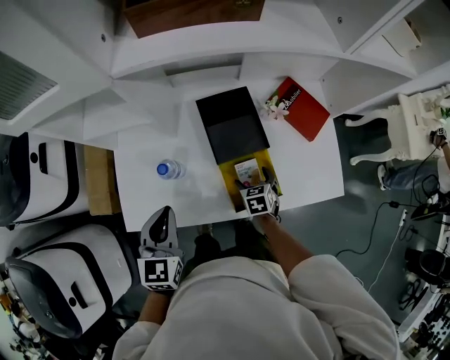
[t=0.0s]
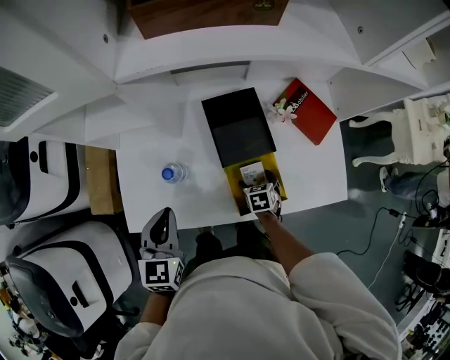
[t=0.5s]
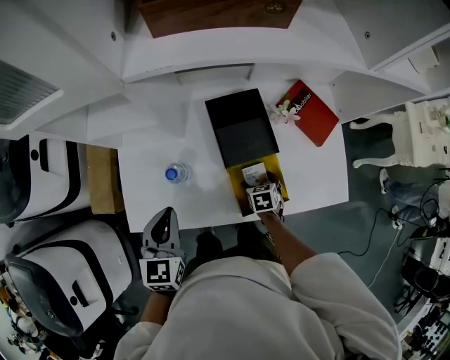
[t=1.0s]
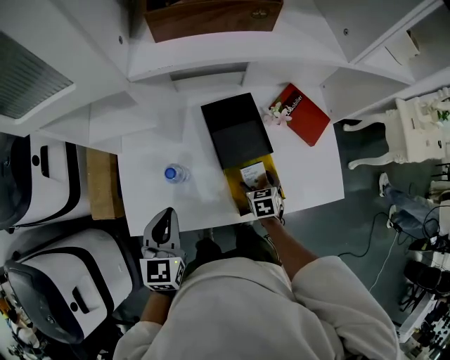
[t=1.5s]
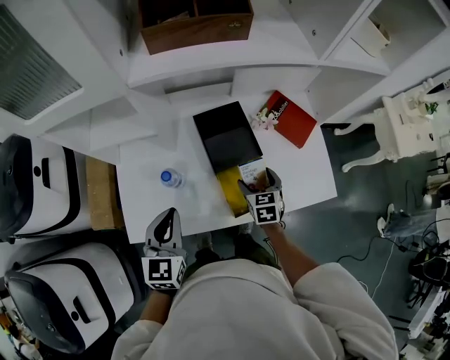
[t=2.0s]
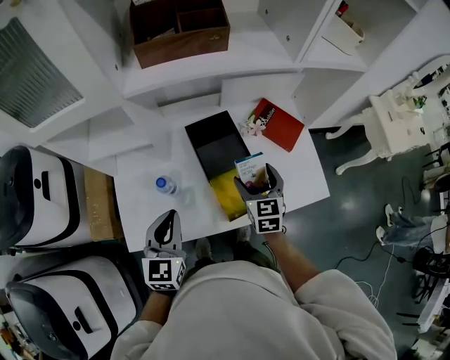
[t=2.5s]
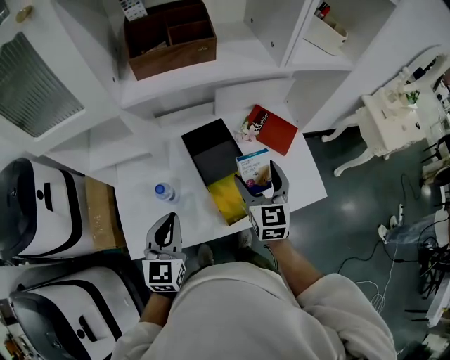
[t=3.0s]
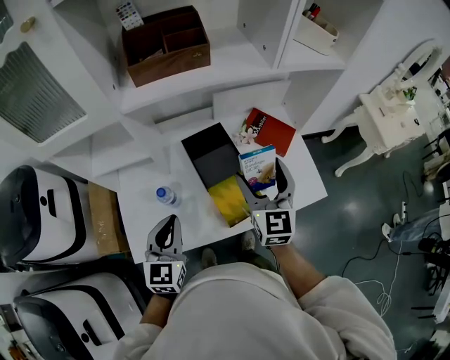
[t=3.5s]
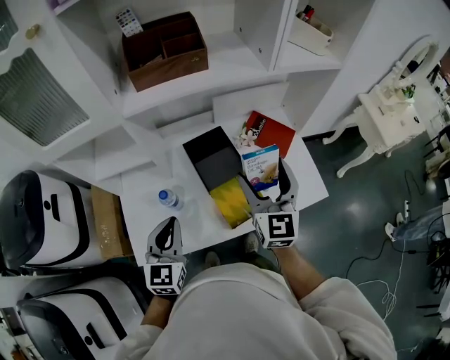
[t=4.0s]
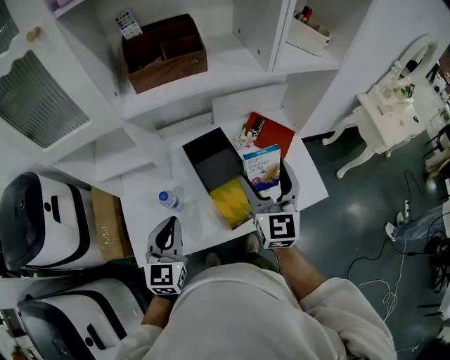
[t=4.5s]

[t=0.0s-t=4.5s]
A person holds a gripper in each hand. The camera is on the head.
t=0.0s to t=2.0s: The right gripper travels upward by about 10 cm.
t=2.0s to t=4.5s: The left gripper moves upward, some 5 cm. The right gripper moves upward, approximately 30 cm, and points its fingers some 40 degrees further upward.

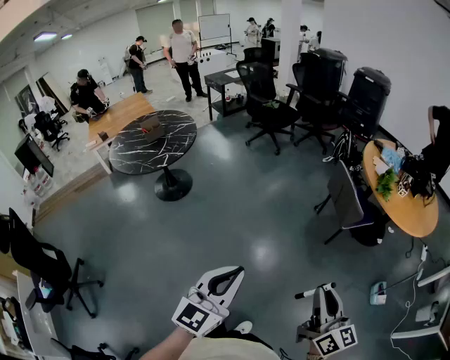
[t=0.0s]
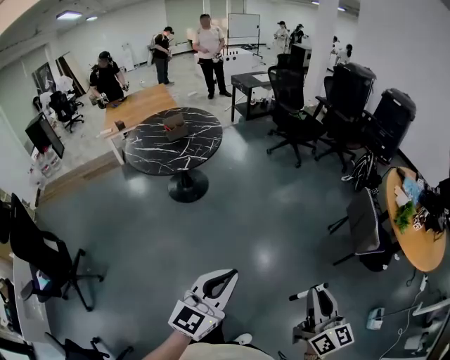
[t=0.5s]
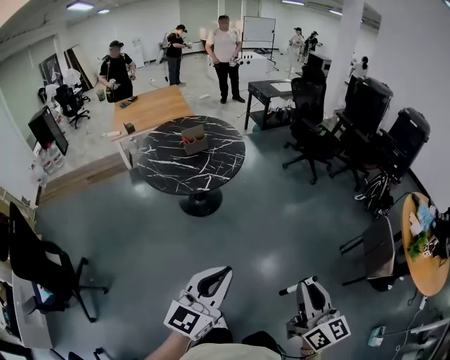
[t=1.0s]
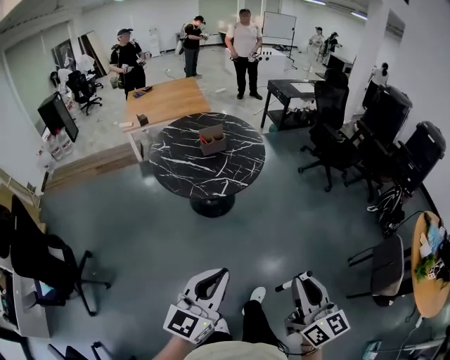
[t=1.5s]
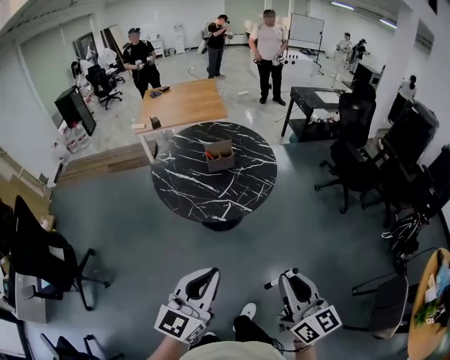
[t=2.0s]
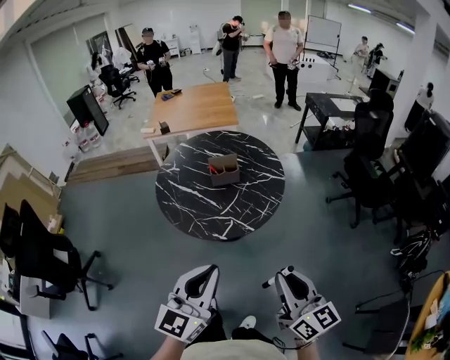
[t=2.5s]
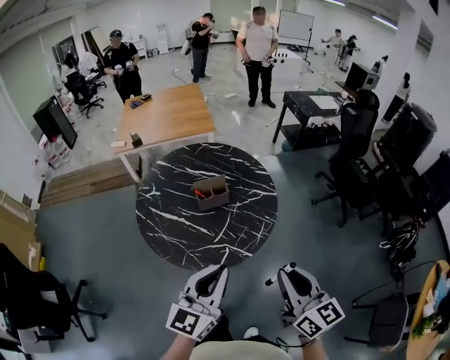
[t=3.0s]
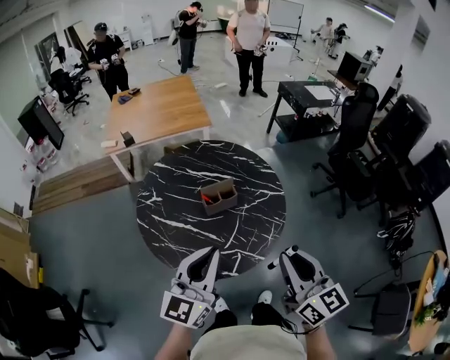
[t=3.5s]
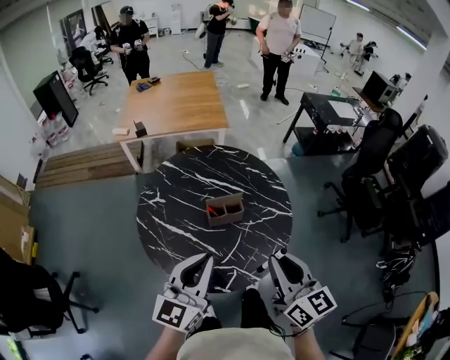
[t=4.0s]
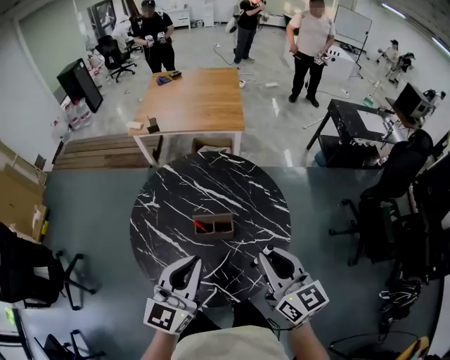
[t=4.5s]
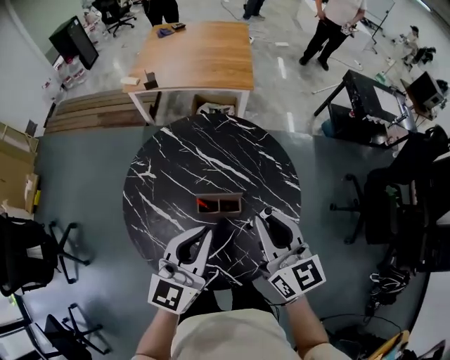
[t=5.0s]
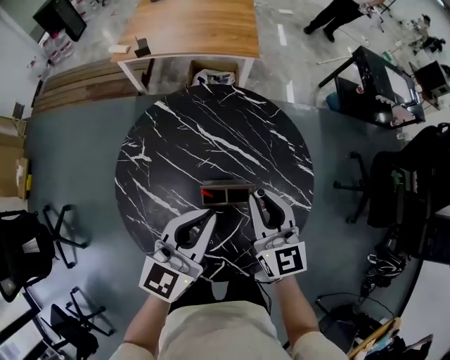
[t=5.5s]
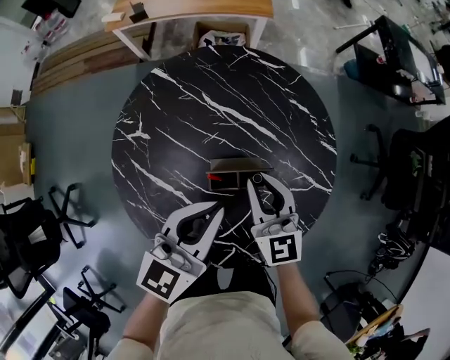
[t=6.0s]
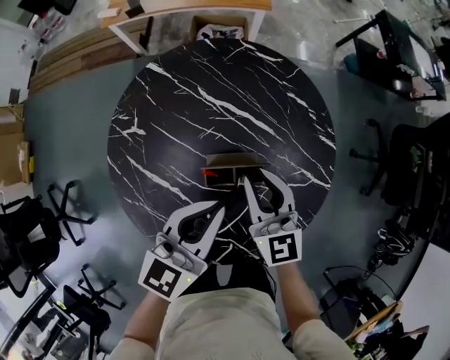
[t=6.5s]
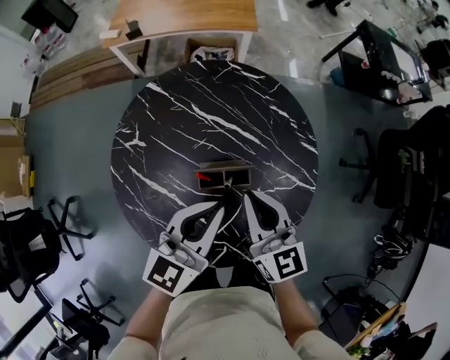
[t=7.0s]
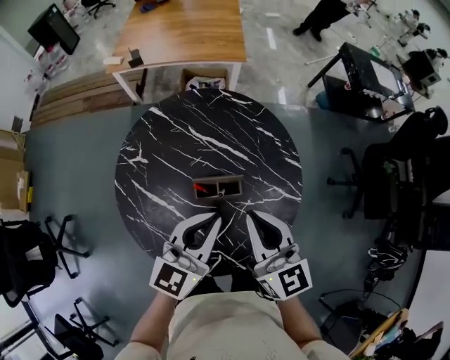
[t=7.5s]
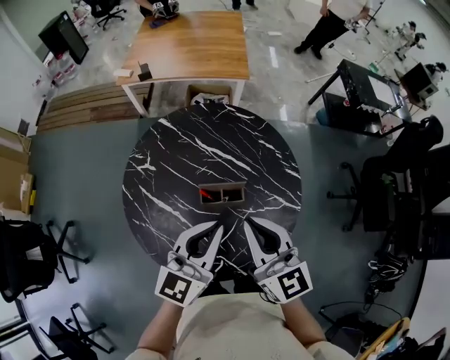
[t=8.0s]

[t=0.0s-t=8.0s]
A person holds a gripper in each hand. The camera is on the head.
t=0.0s to t=2.0s: Both grippers are carried approximately 70 cm. The left gripper swivels some 30 degrees; the right gripper turns by about 40 degrees.
t=2.0s to t=4.0s: Both grippers are carried forward, approximately 50 cm.
t=4.0s to t=6.0s: Both grippers move forward and downward, roughly 35 cm.
t=6.0s to t=8.0s: The right gripper heads upward and backward, covering roughly 20 cm, while the left gripper travels upward and backward by about 15 cm.

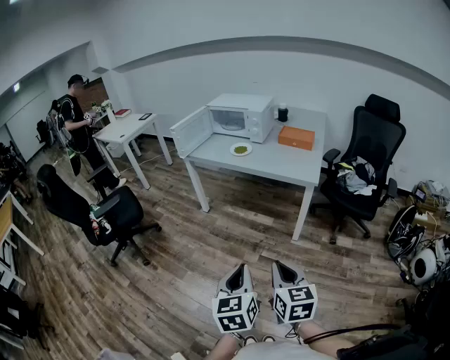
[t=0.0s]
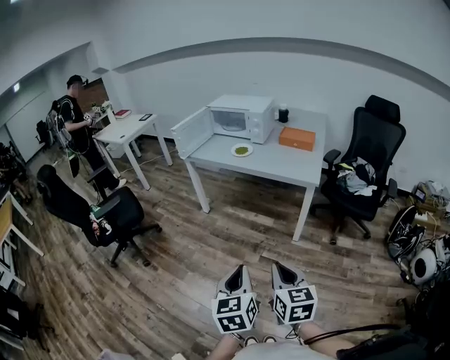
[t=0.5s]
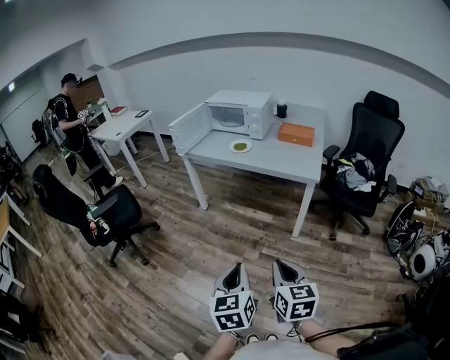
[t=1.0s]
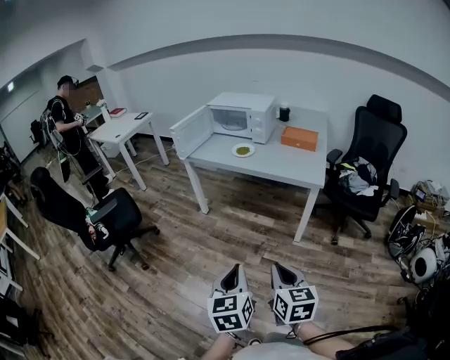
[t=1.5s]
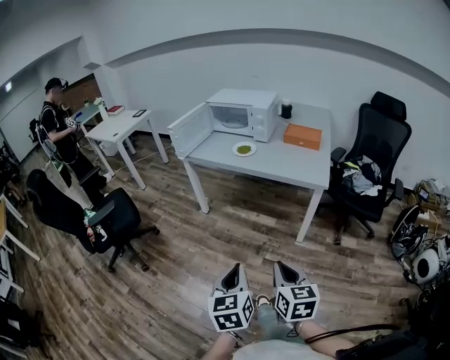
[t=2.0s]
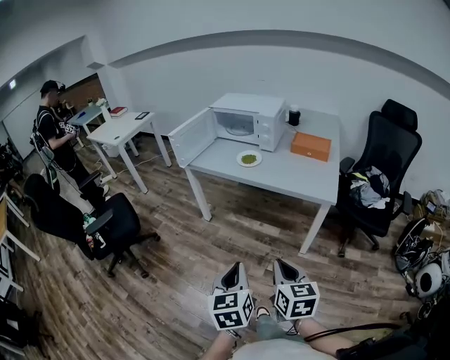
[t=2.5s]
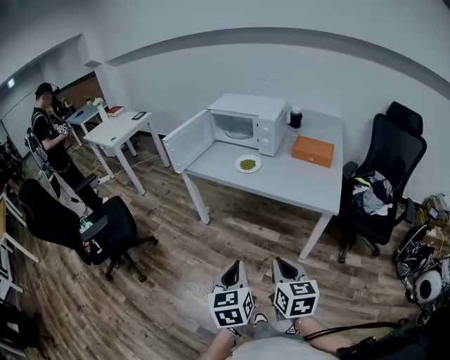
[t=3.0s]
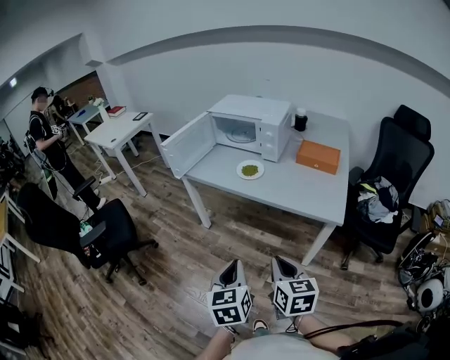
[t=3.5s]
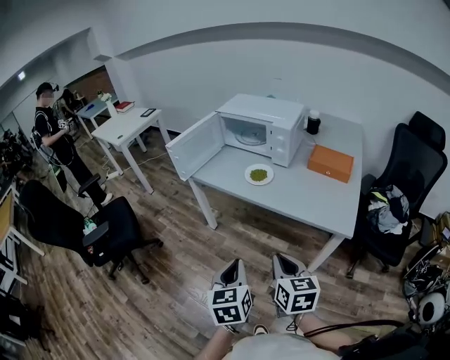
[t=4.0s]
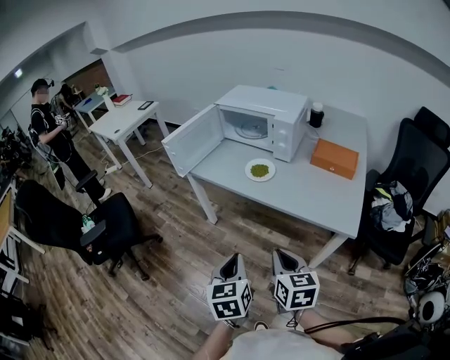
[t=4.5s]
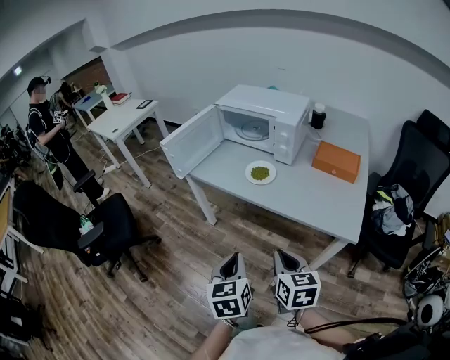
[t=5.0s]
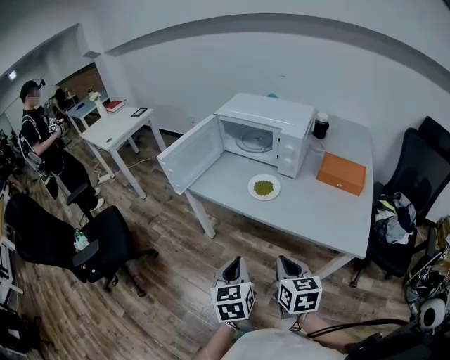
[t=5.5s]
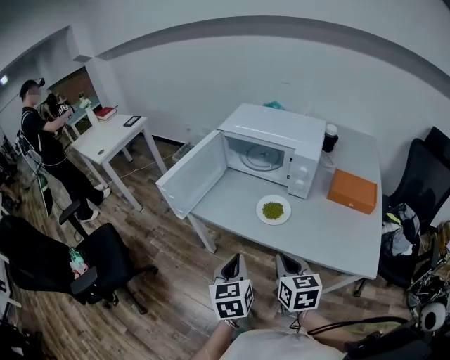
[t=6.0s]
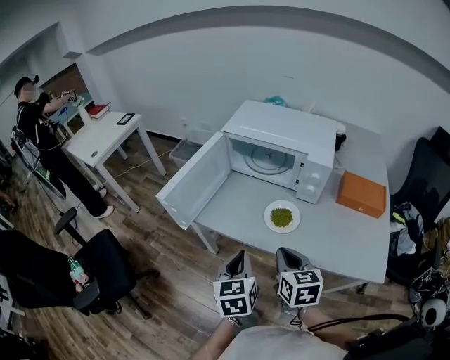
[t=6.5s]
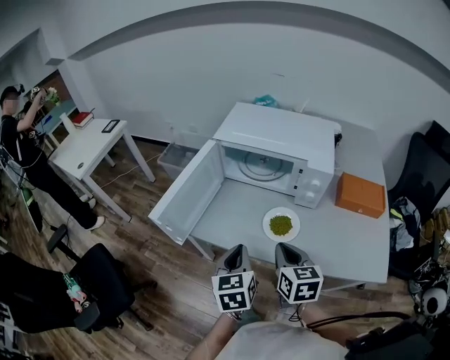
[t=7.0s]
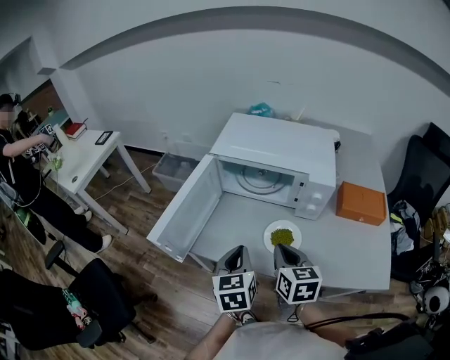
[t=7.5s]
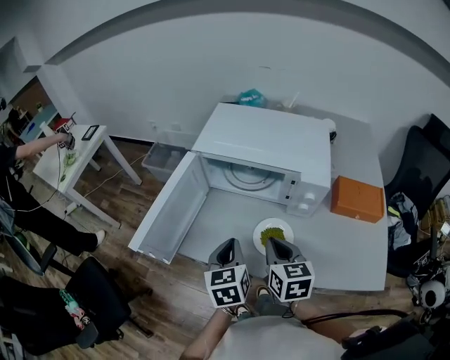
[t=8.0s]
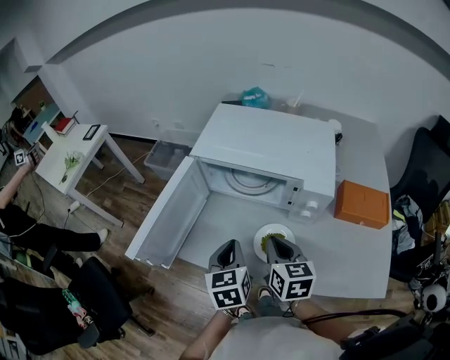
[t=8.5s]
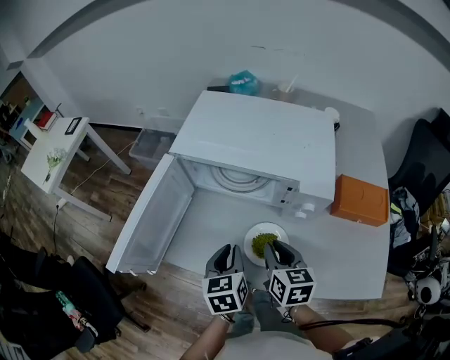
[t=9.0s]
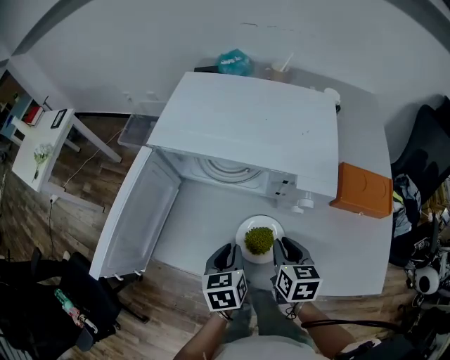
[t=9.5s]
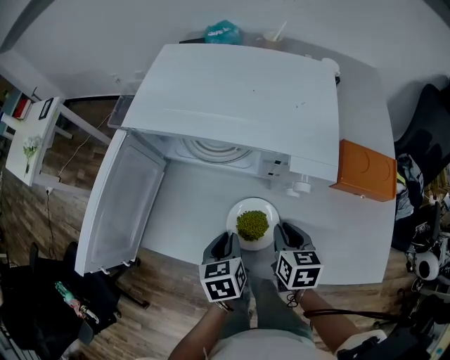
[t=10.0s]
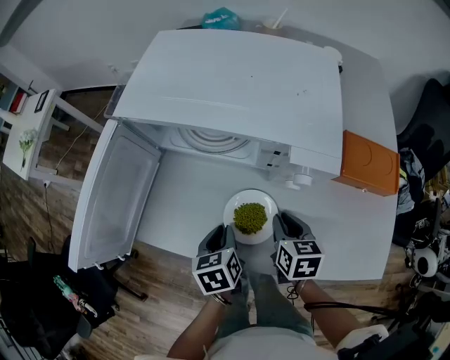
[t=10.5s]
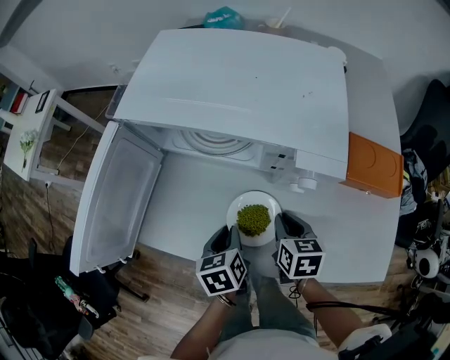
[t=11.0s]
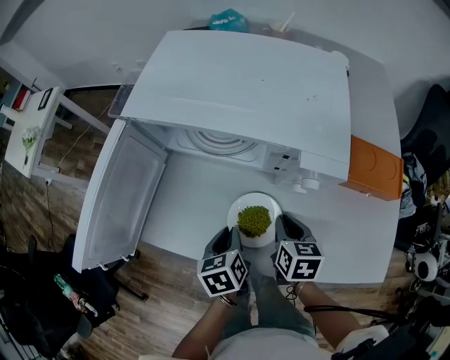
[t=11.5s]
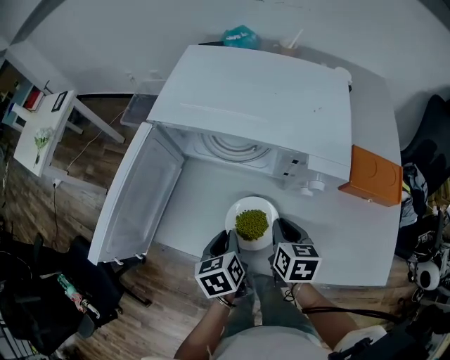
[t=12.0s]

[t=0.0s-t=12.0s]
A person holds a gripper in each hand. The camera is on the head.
t=0.0s to t=2.0s: The left gripper moves forward and to the left, roughly 10 cm. Meanwhile the right gripper goes about 10 cm forward.
t=2.0s to t=4.0s: The grippers both shift forward by about 30 cm.
t=4.0s to t=6.0s: Both grippers move forward, some 25 cm.
t=6.0s to t=8.0s: Both grippers move forward, approximately 25 cm.
t=8.0s to t=10.0s: Both grippers move downward and to the right, approximately 20 cm. The left gripper swivels some 20 degrees.
t=10.0s to t=12.0s: The grippers move only a little.

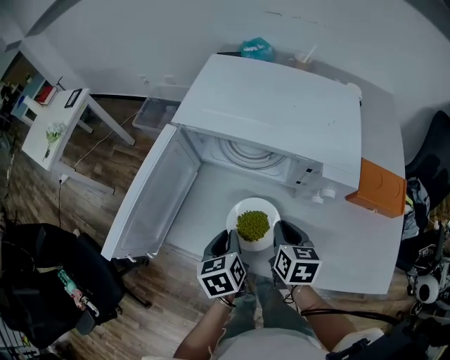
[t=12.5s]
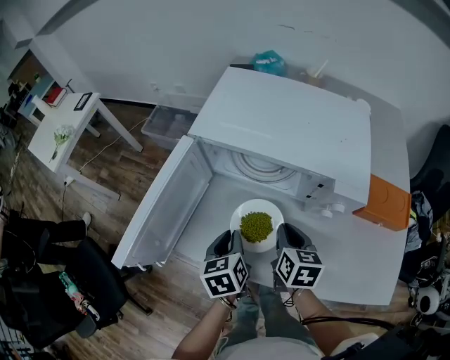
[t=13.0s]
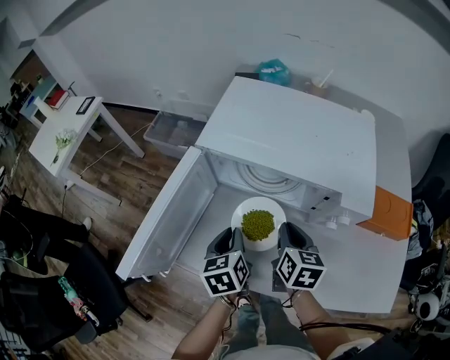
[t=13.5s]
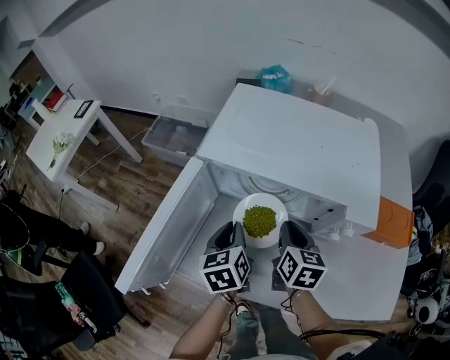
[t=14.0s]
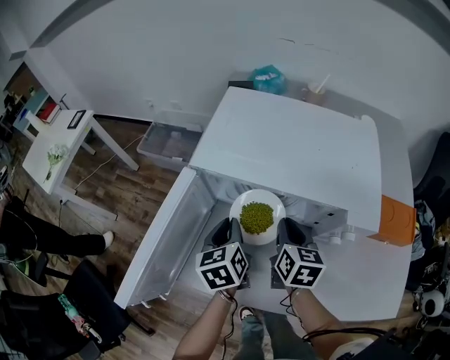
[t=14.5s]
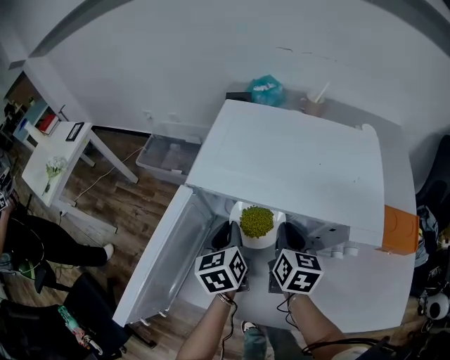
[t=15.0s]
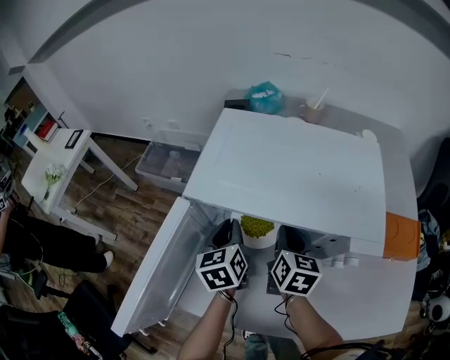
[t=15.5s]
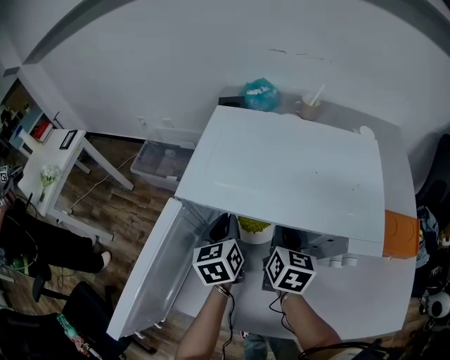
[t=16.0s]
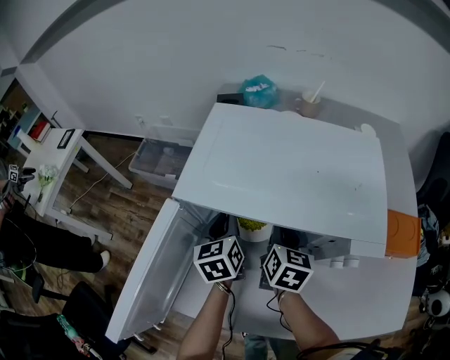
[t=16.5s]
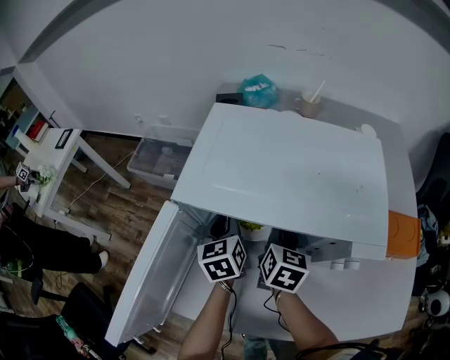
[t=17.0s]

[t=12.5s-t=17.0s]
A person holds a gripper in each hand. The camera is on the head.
t=12.5s to t=14.5s: Both grippers travel together forward, about 15 cm.
t=14.5s to t=17.0s: The two grippers go some 10 cm forward.
